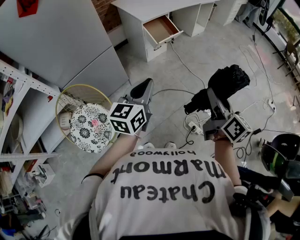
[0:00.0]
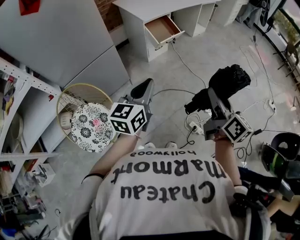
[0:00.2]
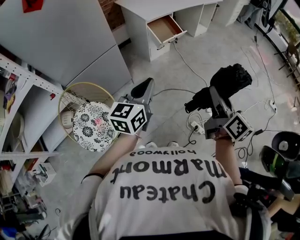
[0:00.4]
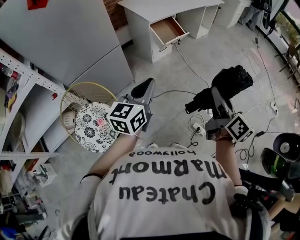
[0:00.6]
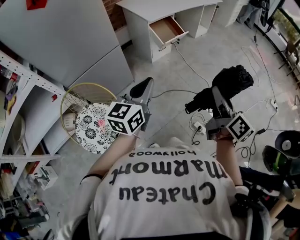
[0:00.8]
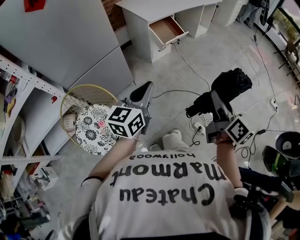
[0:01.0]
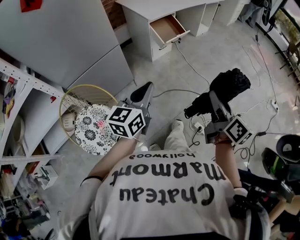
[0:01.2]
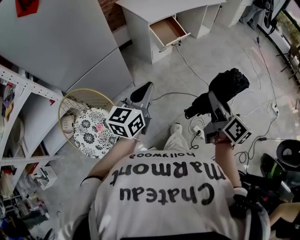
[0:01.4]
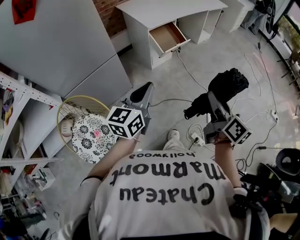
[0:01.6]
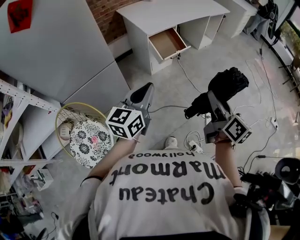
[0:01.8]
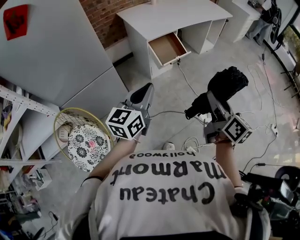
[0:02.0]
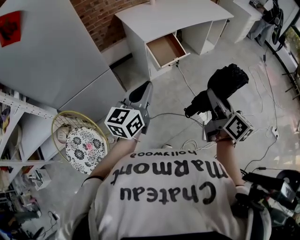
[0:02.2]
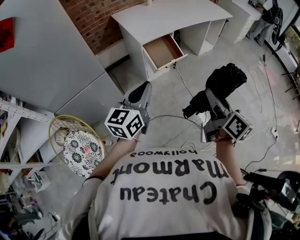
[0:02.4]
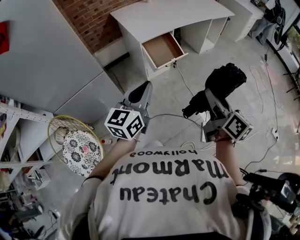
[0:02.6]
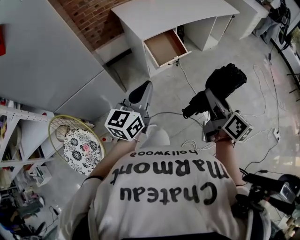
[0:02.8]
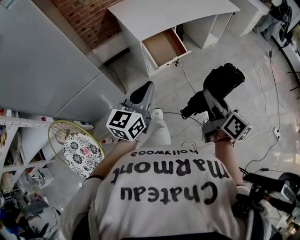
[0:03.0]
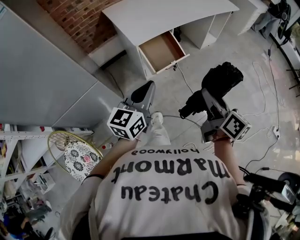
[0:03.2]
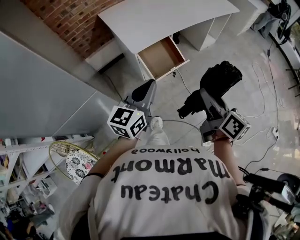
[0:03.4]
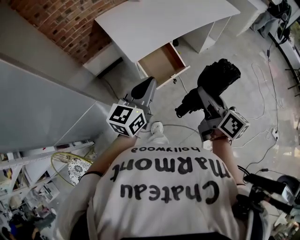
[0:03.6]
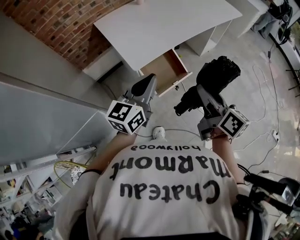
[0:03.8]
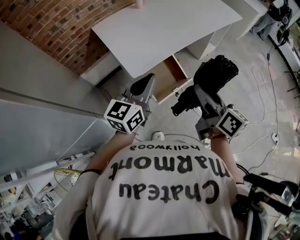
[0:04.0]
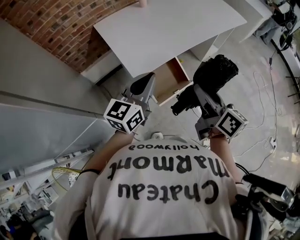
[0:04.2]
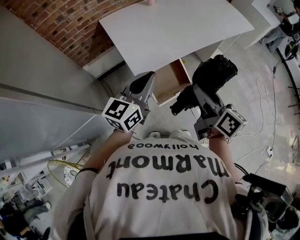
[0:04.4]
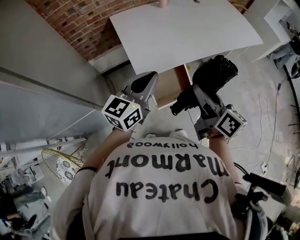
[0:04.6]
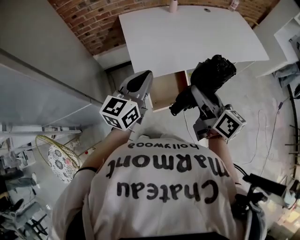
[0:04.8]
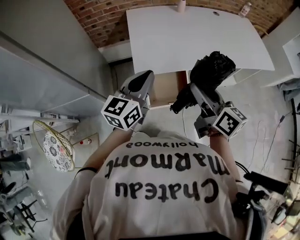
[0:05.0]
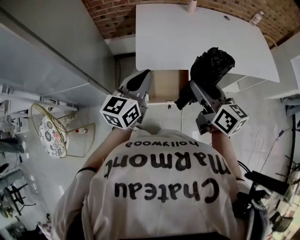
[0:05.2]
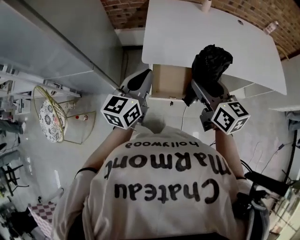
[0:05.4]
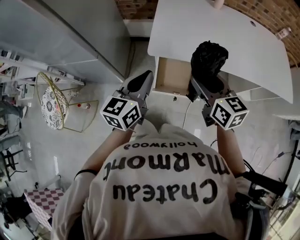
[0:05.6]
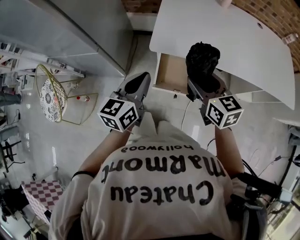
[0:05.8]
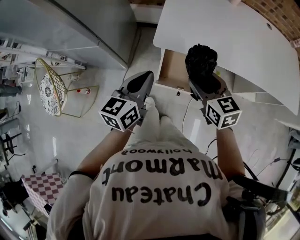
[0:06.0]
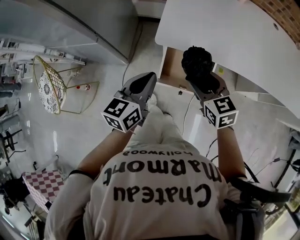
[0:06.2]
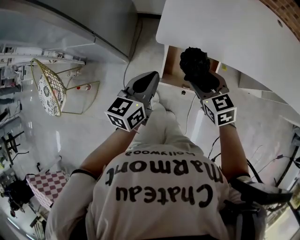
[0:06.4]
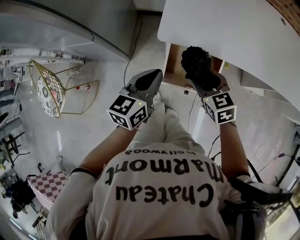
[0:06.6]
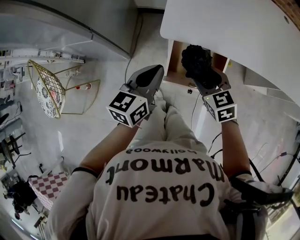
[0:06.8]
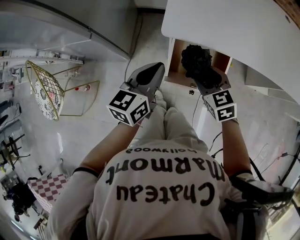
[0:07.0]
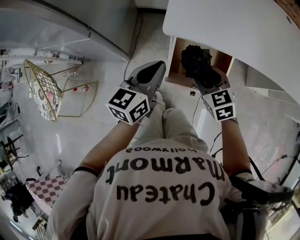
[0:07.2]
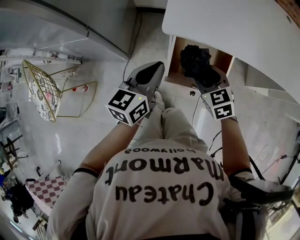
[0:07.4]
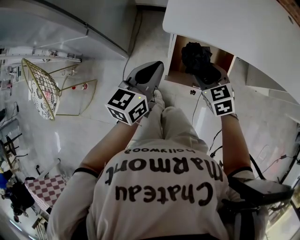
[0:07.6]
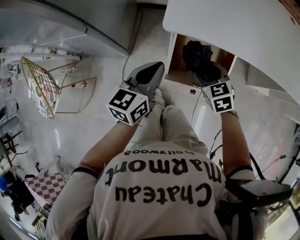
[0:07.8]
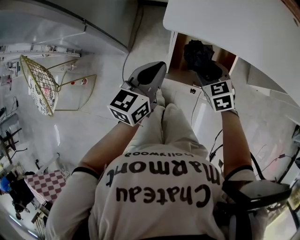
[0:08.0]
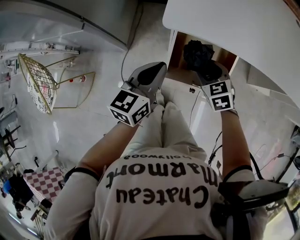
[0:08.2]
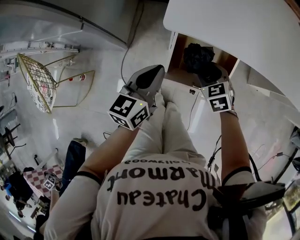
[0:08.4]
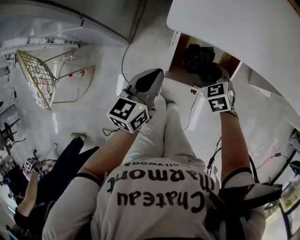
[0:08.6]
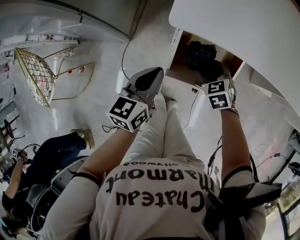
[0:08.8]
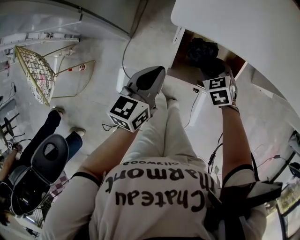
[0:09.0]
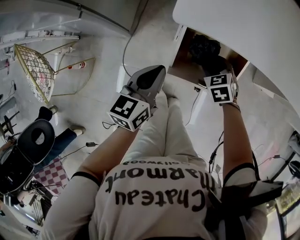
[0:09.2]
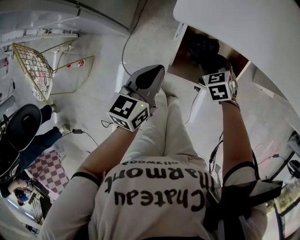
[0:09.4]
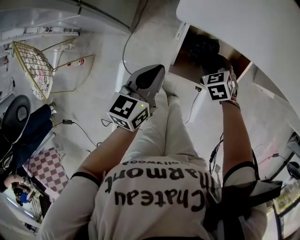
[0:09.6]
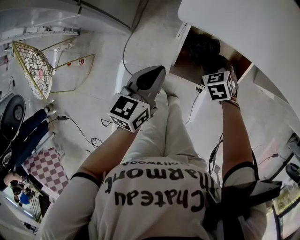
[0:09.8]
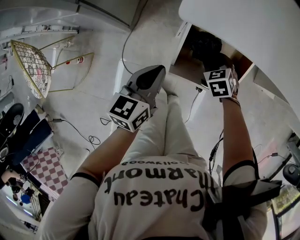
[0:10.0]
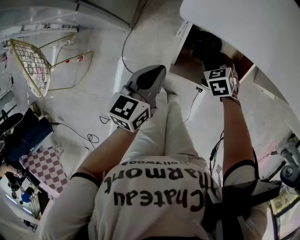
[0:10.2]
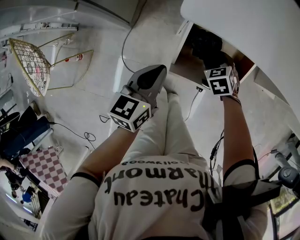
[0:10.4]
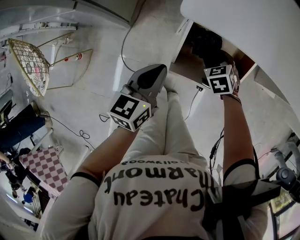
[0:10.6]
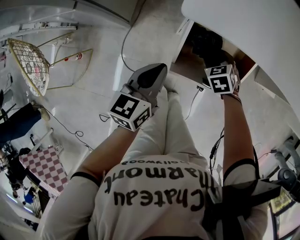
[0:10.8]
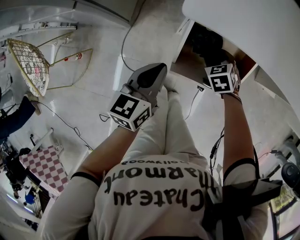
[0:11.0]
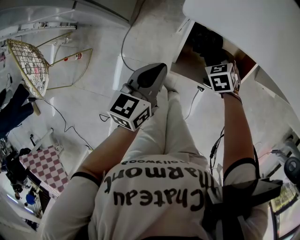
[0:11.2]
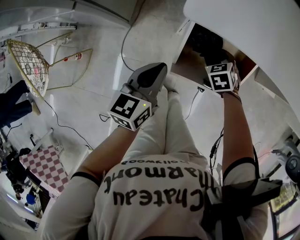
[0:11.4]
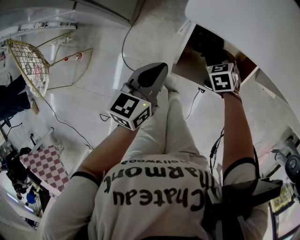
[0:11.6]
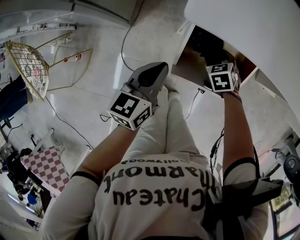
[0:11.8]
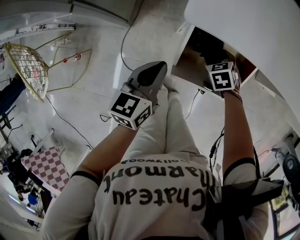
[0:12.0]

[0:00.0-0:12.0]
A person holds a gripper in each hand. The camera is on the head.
0.0 to 1.6 s: Both grippers move forward, approximately 10 cm.
1.6 to 3.0 s: The two grippers go about 25 cm forward.
3.0 to 4.4 s: Both grippers move forward, about 35 cm.
4.4 to 6.0 s: The two grippers go approximately 10 cm downward. The left gripper swivels approximately 50 degrees; the right gripper swivels roughly 70 degrees.
6.0 to 7.6 s: The left gripper travels downward by about 15 cm. The right gripper heads downward, covering some 20 cm, and changes its angle by some 20 degrees.
7.6 to 9.0 s: The right gripper is displaced downward by roughly 10 cm. Meanwhile the left gripper shifts about 5 cm downward.
9.0 to 10.4 s: The grippers move only a little.
10.4 to 12.0 s: The grippers stay close to where they were, moving slightly.

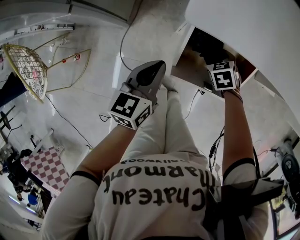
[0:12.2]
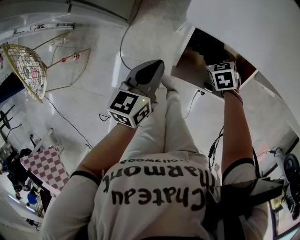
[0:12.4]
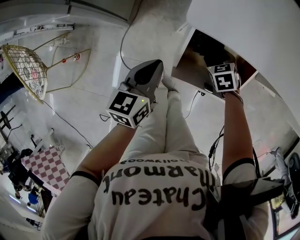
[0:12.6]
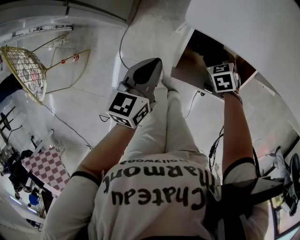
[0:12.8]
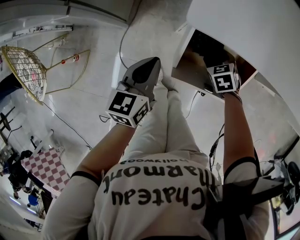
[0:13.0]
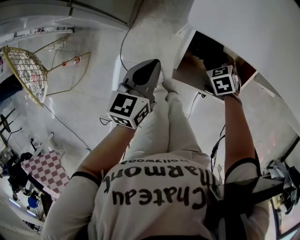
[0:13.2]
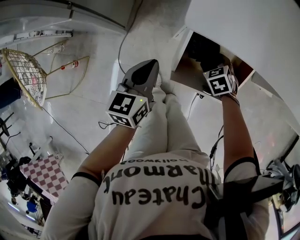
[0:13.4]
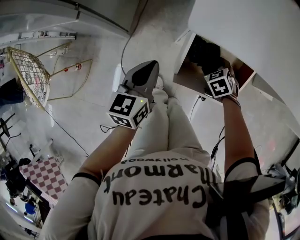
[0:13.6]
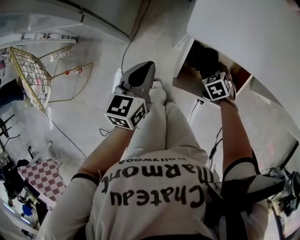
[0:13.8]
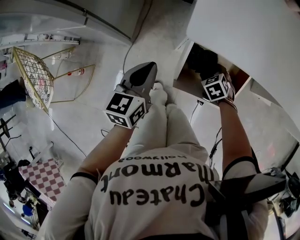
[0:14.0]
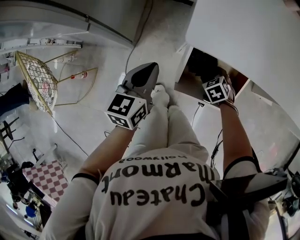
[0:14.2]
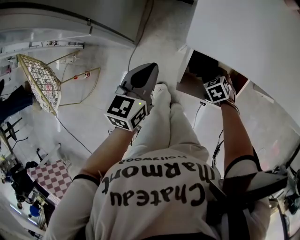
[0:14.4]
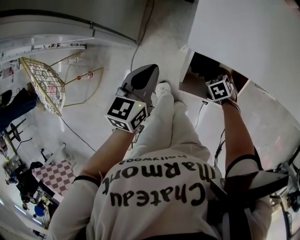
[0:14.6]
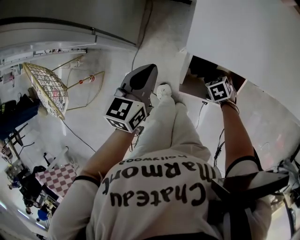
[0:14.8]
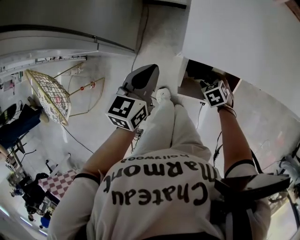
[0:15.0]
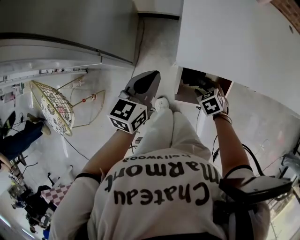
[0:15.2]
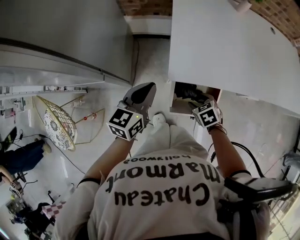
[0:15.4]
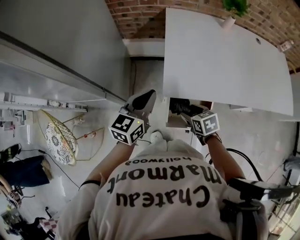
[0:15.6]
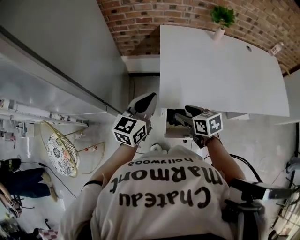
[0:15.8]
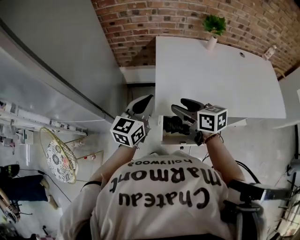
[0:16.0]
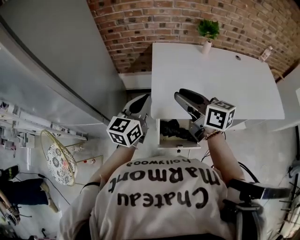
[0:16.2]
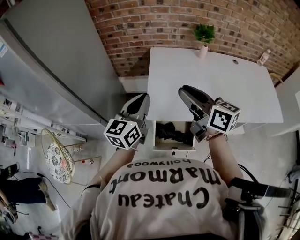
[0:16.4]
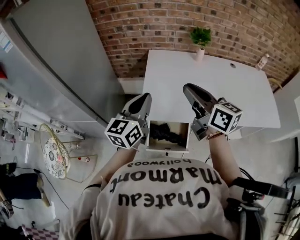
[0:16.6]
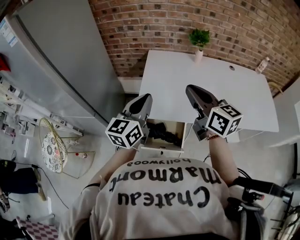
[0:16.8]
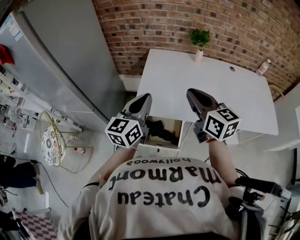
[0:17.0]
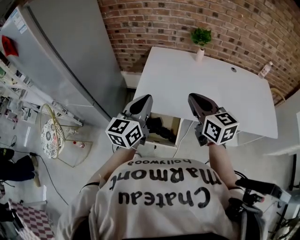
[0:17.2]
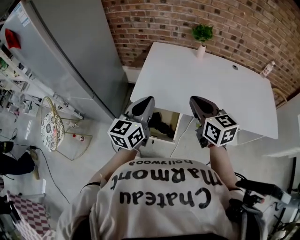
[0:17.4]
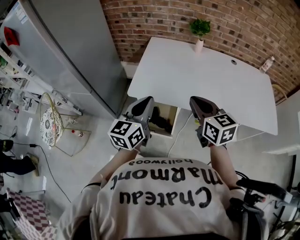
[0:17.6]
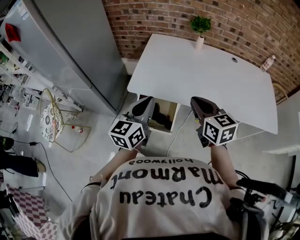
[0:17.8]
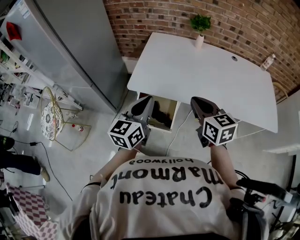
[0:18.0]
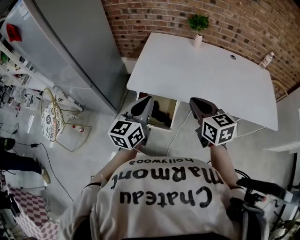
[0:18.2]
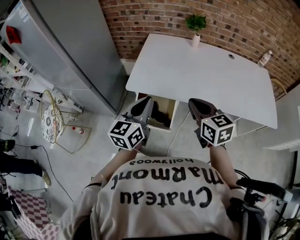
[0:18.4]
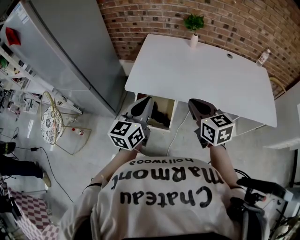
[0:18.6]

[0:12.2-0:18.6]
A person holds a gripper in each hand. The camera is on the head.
12.2 to 13.8 s: The left gripper goes approximately 5 cm to the left.
13.8 to 15.4 s: The grippers both shift upward by about 20 cm. The left gripper rotates roughly 20 degrees.
15.4 to 17.0 s: The left gripper goes approximately 30 cm upward and to the right, and rotates roughly 20 degrees. The right gripper heads upward, covering some 40 cm, tilts its fingers approximately 60 degrees upward, and closes up.
17.0 to 18.6 s: The left gripper heads backward and to the right, covering roughly 15 cm. The right gripper goes some 15 cm backward, downward and to the right.

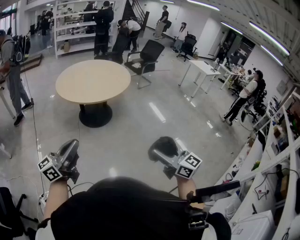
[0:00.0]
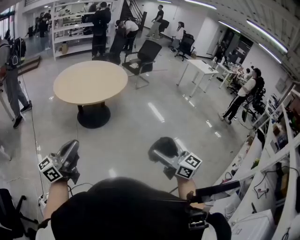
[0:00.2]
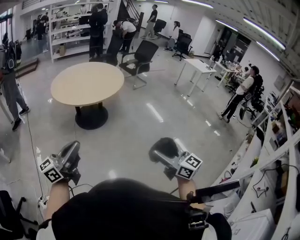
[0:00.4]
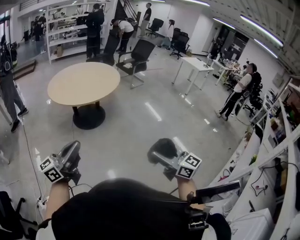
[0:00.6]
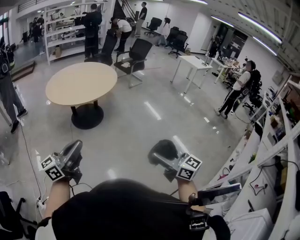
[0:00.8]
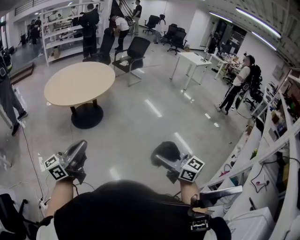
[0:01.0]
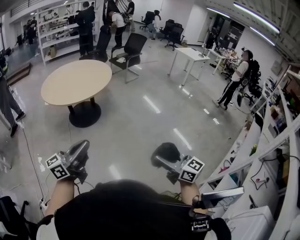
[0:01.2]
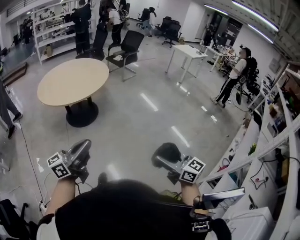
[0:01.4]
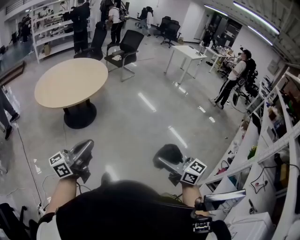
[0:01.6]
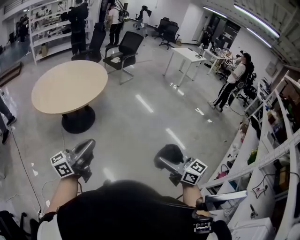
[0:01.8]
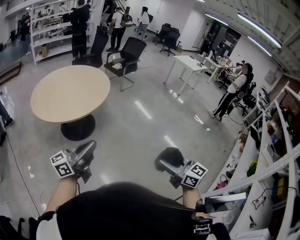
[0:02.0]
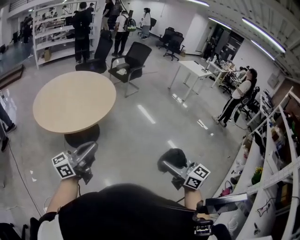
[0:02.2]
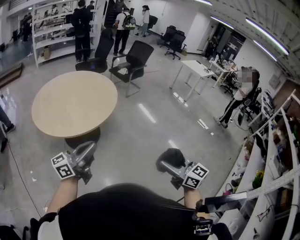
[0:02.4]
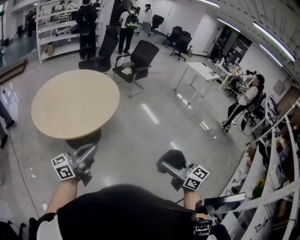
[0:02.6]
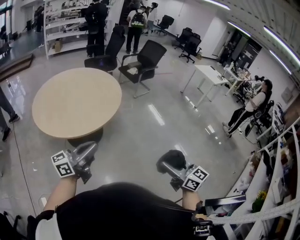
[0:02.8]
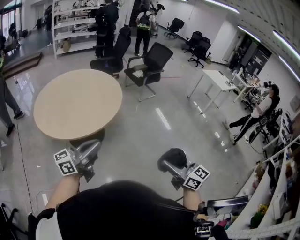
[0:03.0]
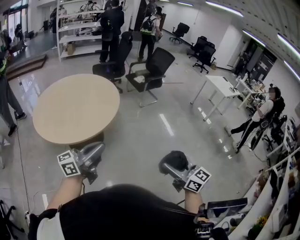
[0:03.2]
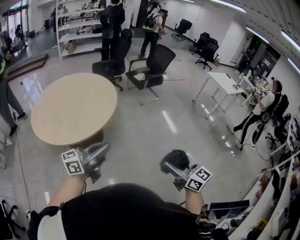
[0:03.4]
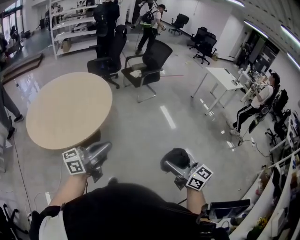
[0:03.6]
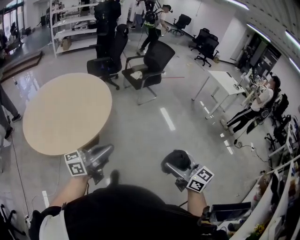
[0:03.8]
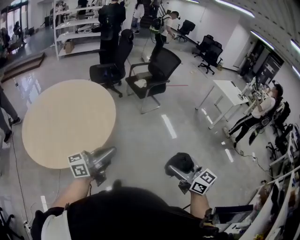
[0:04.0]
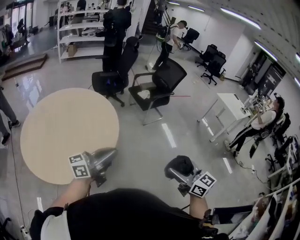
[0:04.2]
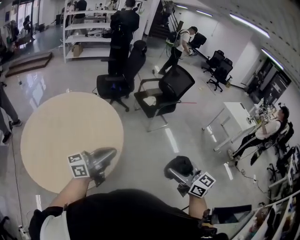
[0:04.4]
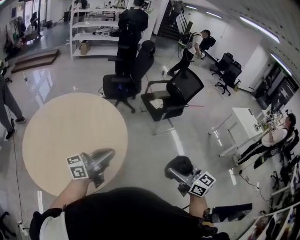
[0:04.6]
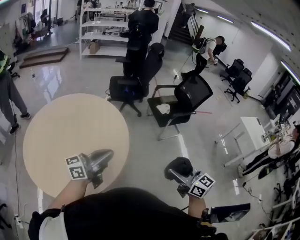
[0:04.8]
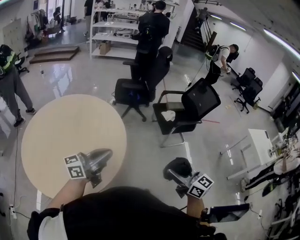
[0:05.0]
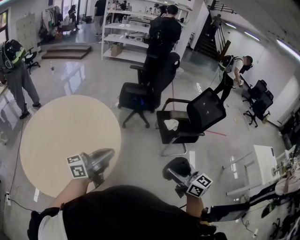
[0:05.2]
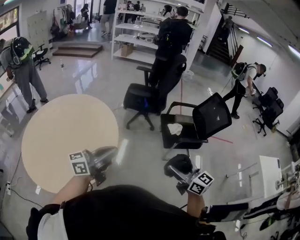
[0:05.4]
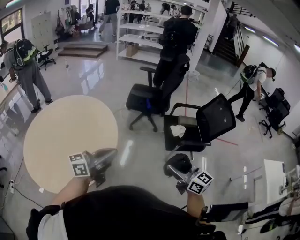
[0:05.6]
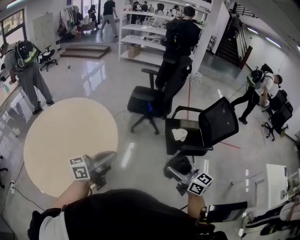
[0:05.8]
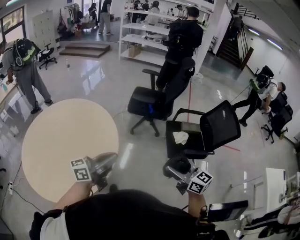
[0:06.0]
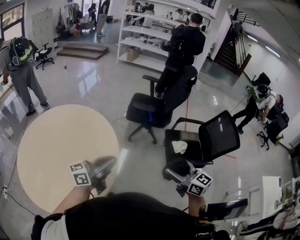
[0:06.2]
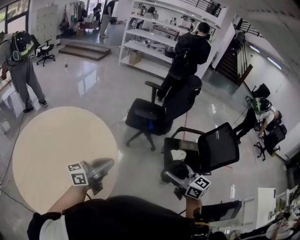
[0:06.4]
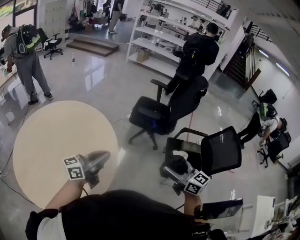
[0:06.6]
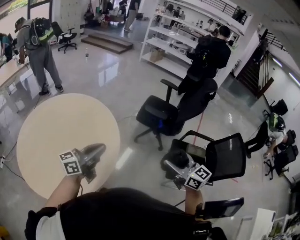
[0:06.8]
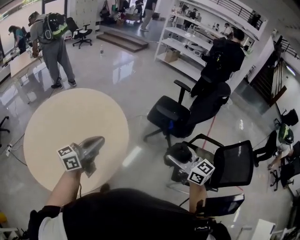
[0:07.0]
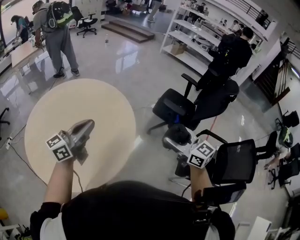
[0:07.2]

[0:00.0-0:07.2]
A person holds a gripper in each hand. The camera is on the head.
0.0 to 1.4 s: The grippers both shift to the right by roughly 20 cm.
1.4 to 2.8 s: Both grippers are carried forward, some 50 cm.
2.8 to 4.4 s: The two grippers travel together, forward, about 60 cm.
4.4 to 5.8 s: The left gripper changes place by roughly 35 cm, and swivels some 30 degrees. Meanwhile the right gripper shifts by approximately 50 cm, and rotates roughly 30 degrees.
5.8 to 7.2 s: The left gripper moves some 30 cm, and turns by roughly 40 degrees; the right gripper ends up some 35 cm from where it was, and rotates some 30 degrees.
